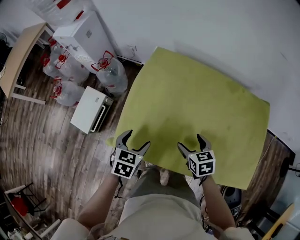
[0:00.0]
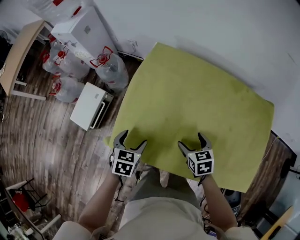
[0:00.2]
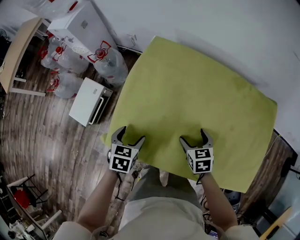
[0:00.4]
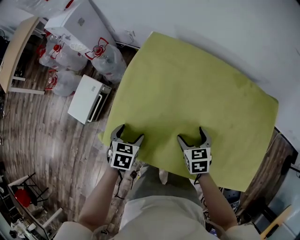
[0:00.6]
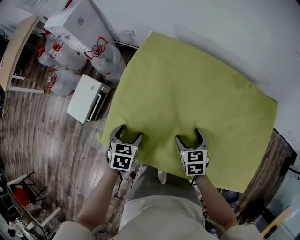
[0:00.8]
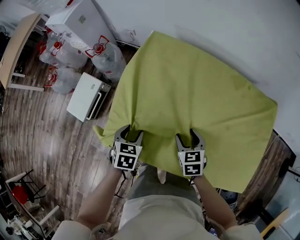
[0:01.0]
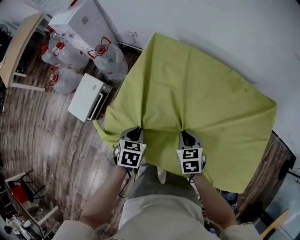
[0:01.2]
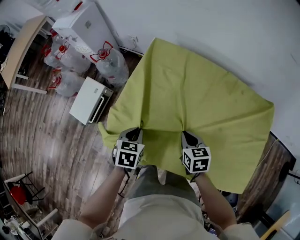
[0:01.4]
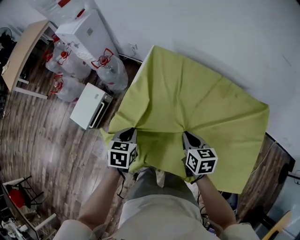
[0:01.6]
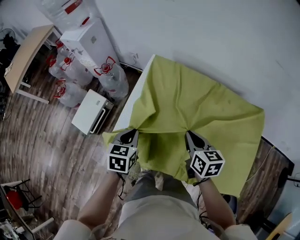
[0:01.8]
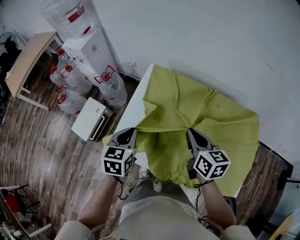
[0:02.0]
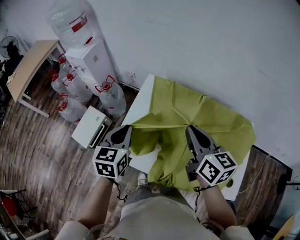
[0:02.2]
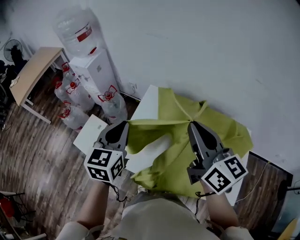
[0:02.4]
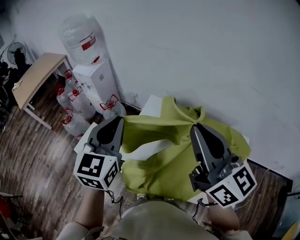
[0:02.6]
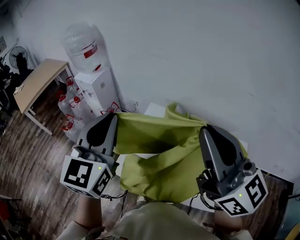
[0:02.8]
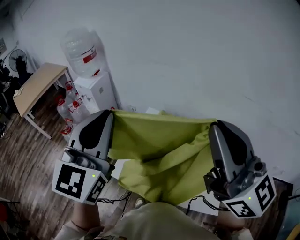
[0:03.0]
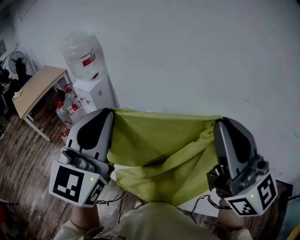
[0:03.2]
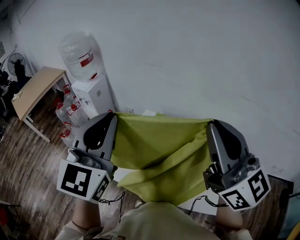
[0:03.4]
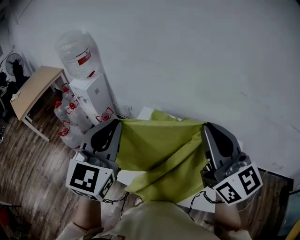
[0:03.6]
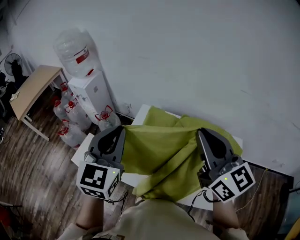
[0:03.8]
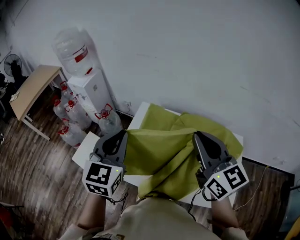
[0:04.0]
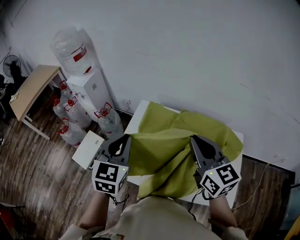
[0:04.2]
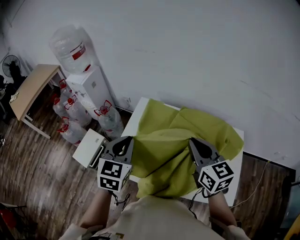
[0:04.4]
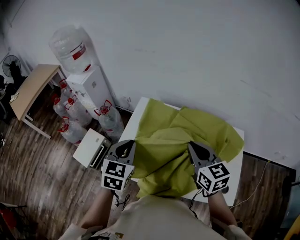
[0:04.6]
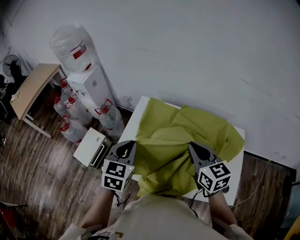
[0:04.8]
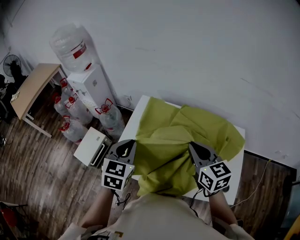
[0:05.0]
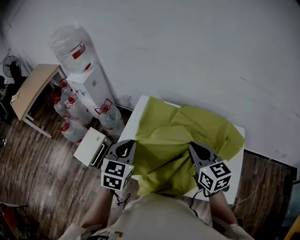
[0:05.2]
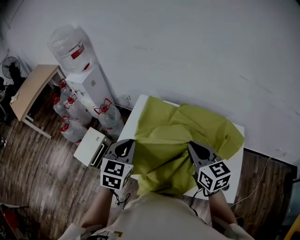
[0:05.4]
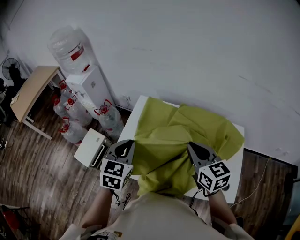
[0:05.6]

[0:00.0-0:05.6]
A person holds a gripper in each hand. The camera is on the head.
0:00.0 to 0:01.4: The left gripper closes its fingers, while the right gripper closes its fingers.
0:01.4 to 0:02.8: Both grippers travel together upward, some 60 cm. The left gripper tilts its fingers about 60 degrees upward. The right gripper angles its fingers upward, by roughly 60 degrees.
0:02.8 to 0:04.2: Both grippers move downward and to the right, about 15 cm. The right gripper swivels approximately 20 degrees.
0:04.2 to 0:05.6: Both grippers move downward, some 10 cm.

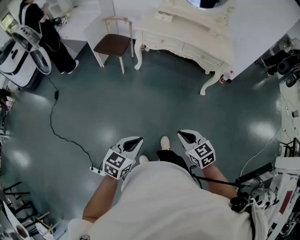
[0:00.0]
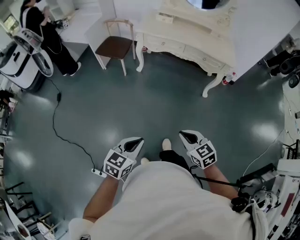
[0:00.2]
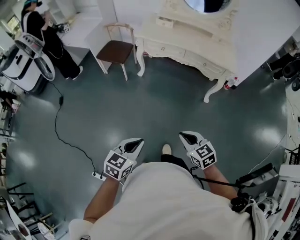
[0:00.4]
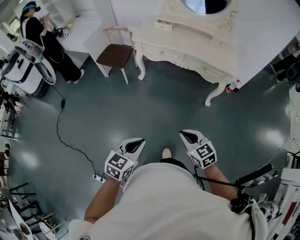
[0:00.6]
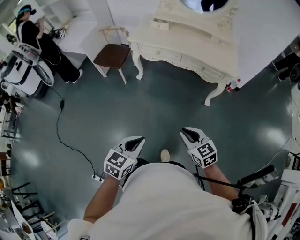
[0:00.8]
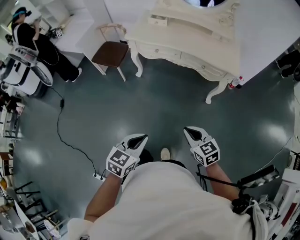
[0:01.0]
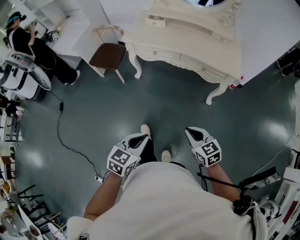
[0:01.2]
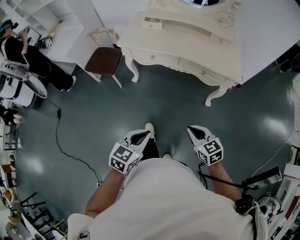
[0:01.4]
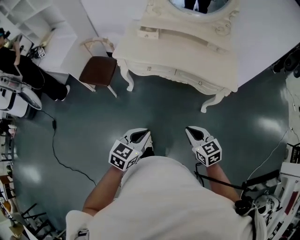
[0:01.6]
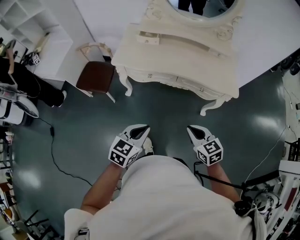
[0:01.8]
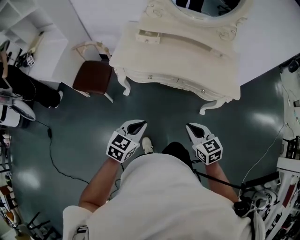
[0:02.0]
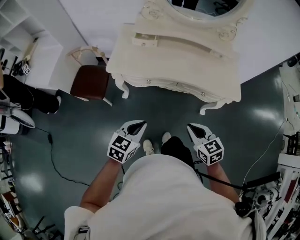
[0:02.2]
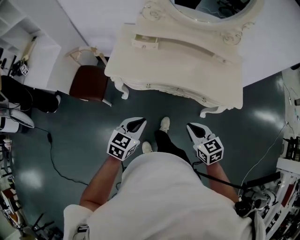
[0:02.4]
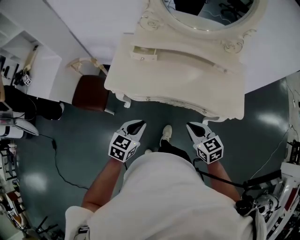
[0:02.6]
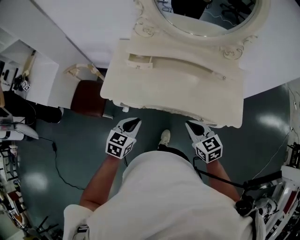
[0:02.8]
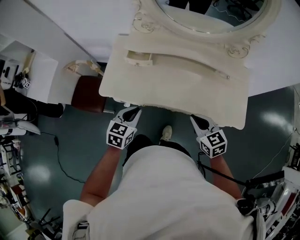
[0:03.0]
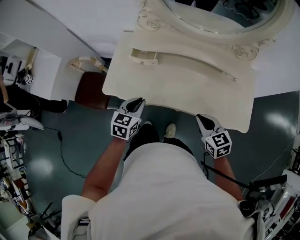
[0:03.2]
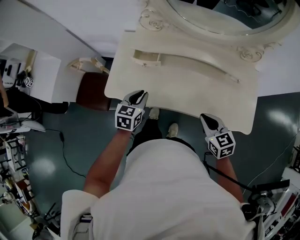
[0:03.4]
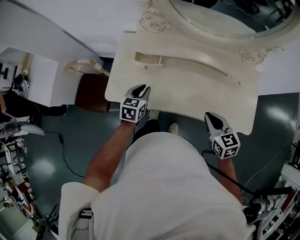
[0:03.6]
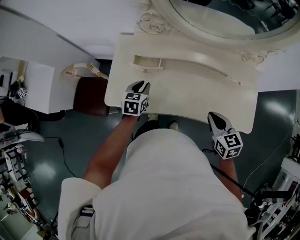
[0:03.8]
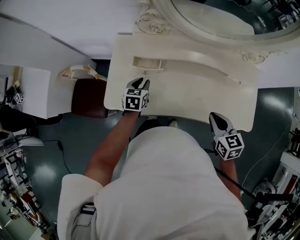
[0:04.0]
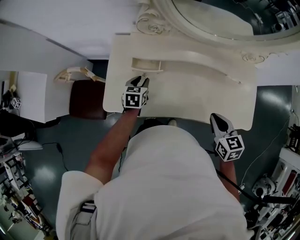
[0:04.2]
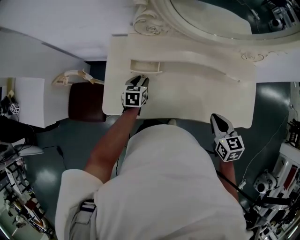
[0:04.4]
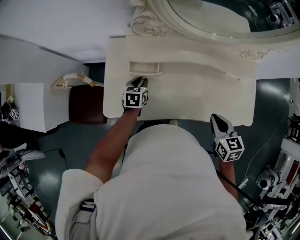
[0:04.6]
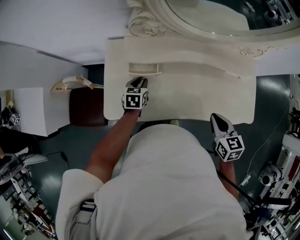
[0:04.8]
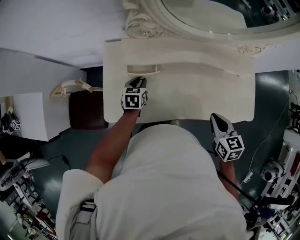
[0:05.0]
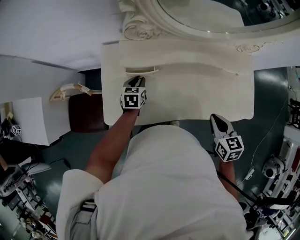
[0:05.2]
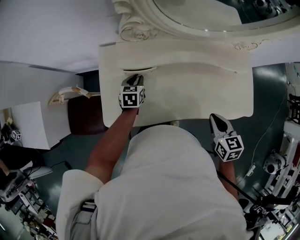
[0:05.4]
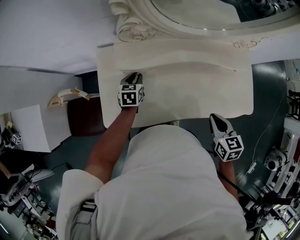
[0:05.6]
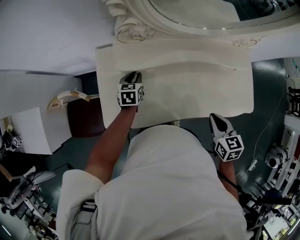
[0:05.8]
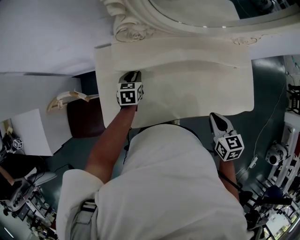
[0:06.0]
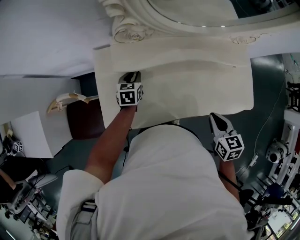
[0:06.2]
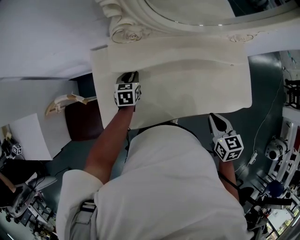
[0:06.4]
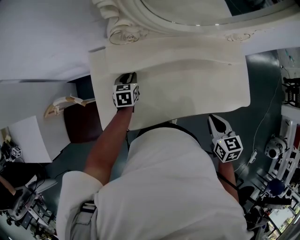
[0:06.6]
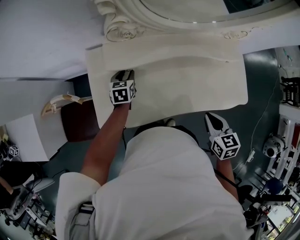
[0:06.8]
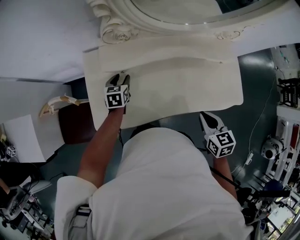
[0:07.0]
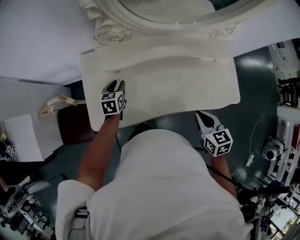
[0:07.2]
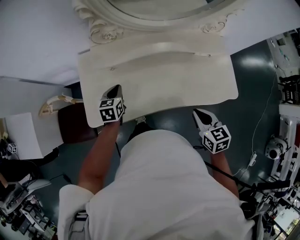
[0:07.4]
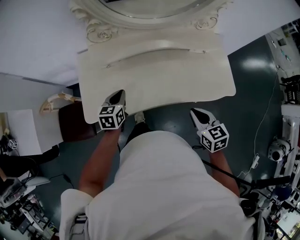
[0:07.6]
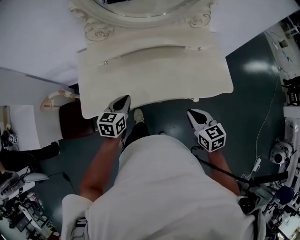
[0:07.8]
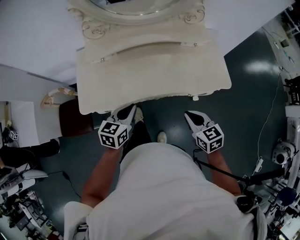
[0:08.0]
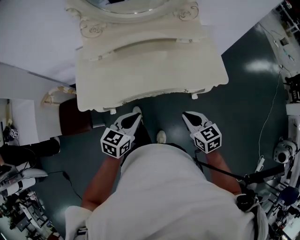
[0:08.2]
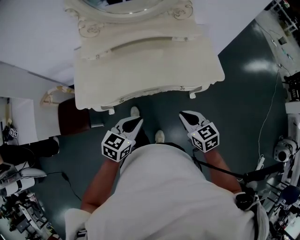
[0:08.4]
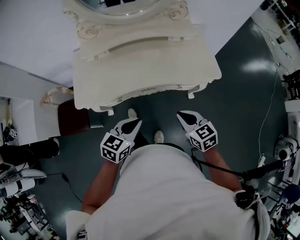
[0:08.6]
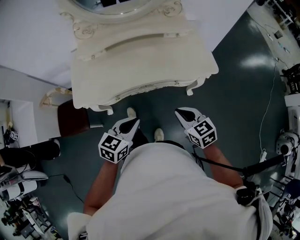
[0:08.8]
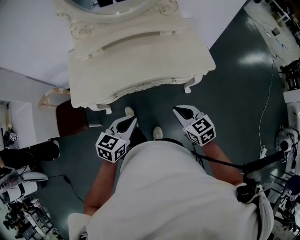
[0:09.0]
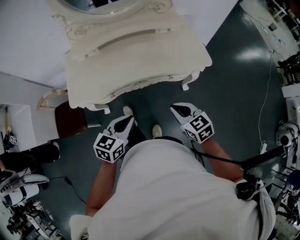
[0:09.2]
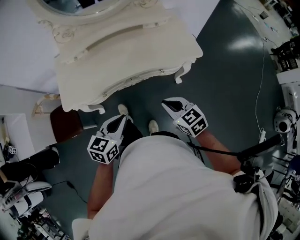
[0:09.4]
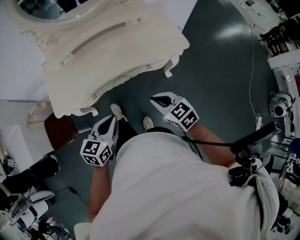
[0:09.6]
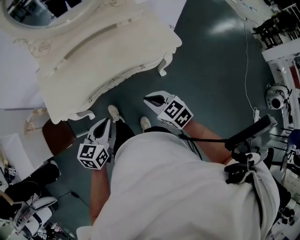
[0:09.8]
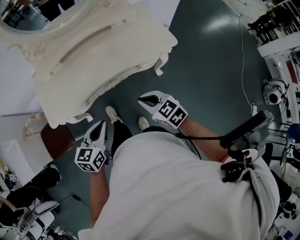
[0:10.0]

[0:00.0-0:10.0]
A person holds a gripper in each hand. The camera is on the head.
0:00.0 to 0:01.4: Both grippers travel together forward and to the right, some 35 cm.
0:01.4 to 0:02.8: The two grippers travel together, forward, some 50 cm.
0:02.8 to 0:04.2: The right gripper travels forward by about 15 cm, and changes its angle by roughly 20 degrees, while the left gripper shifts roughly 35 cm forward, and opens up.
0:04.2 to 0:05.8: The left gripper goes some 10 cm forward.
0:05.8 to 0:07.2: The left gripper travels backward by roughly 5 cm.
0:07.2 to 0:08.6: The left gripper moves backward and to the right, about 50 cm, swivels roughly 30 degrees, and closes; the right gripper is displaced backward and to the right by about 25 cm.
0:08.6 to 0:10.0: The grippers stay close to where they were, moving slightly.

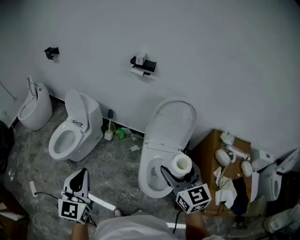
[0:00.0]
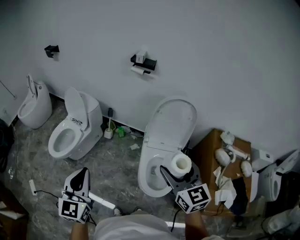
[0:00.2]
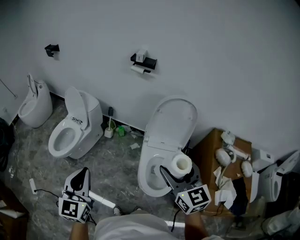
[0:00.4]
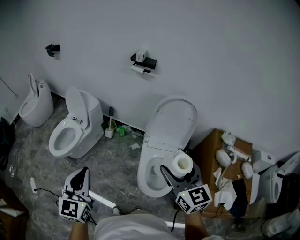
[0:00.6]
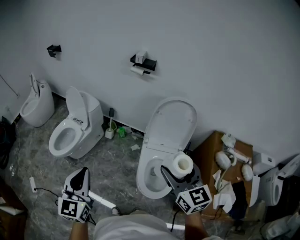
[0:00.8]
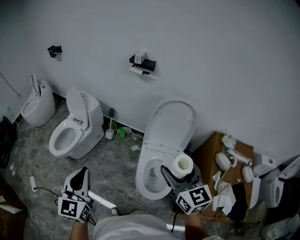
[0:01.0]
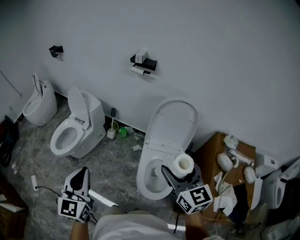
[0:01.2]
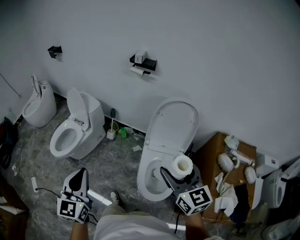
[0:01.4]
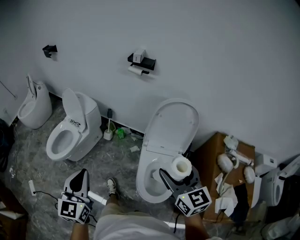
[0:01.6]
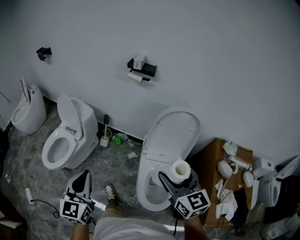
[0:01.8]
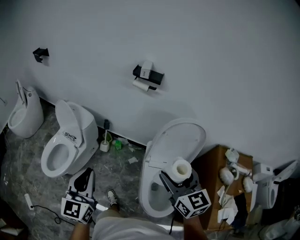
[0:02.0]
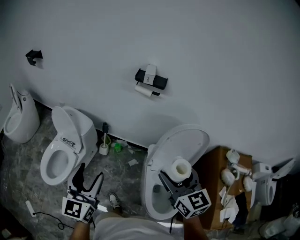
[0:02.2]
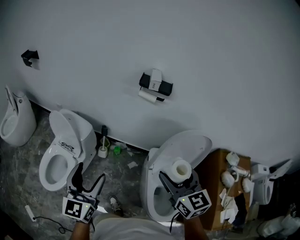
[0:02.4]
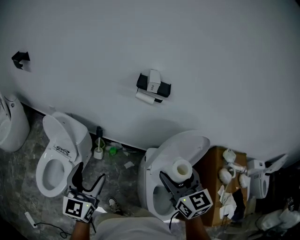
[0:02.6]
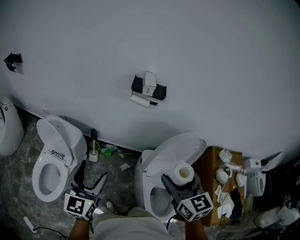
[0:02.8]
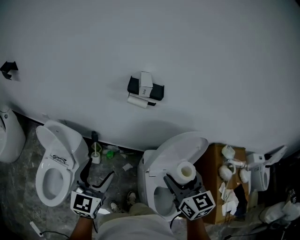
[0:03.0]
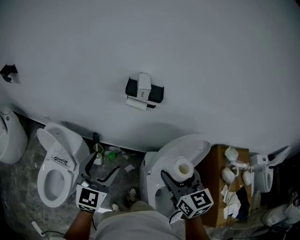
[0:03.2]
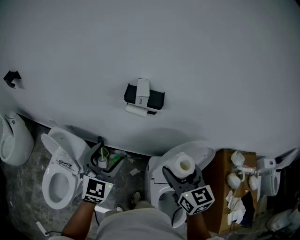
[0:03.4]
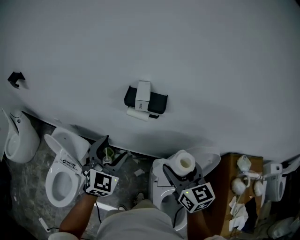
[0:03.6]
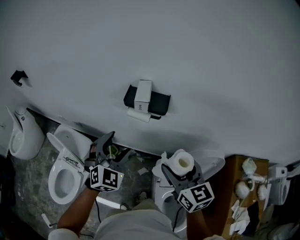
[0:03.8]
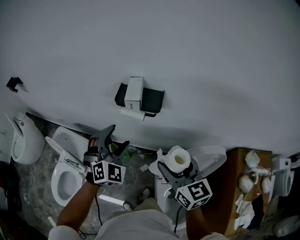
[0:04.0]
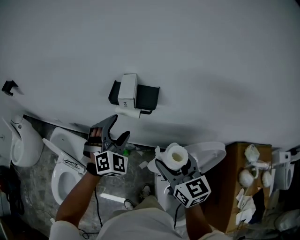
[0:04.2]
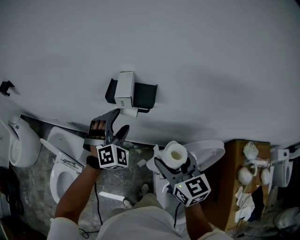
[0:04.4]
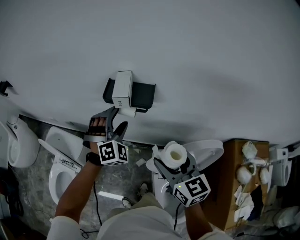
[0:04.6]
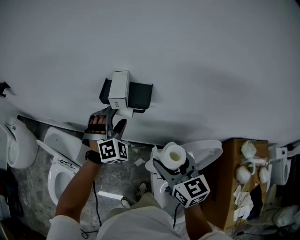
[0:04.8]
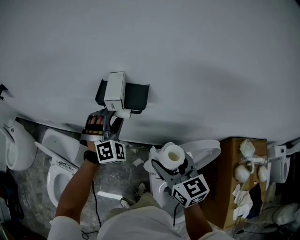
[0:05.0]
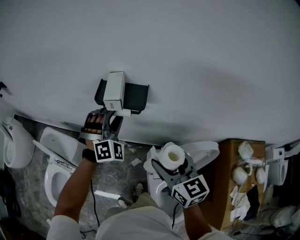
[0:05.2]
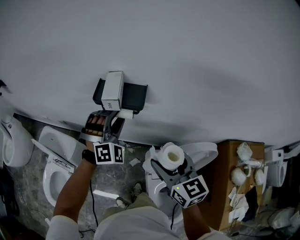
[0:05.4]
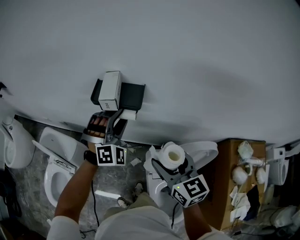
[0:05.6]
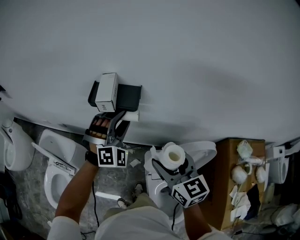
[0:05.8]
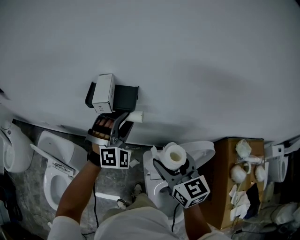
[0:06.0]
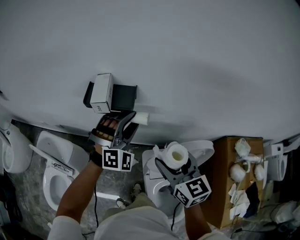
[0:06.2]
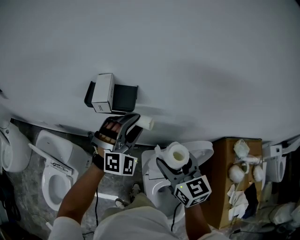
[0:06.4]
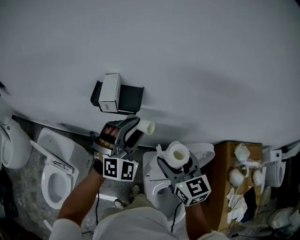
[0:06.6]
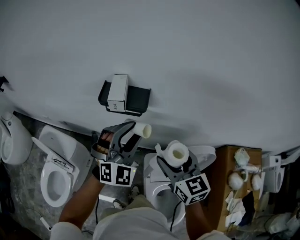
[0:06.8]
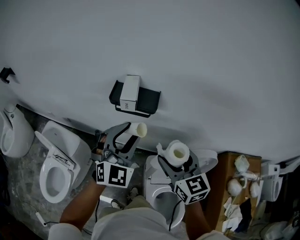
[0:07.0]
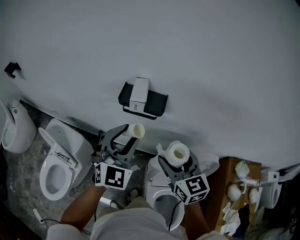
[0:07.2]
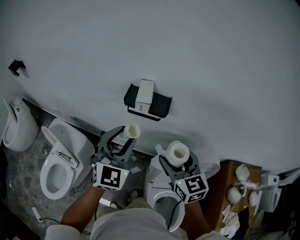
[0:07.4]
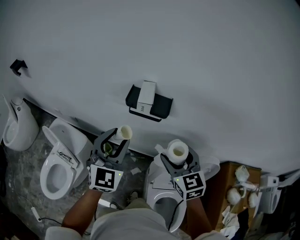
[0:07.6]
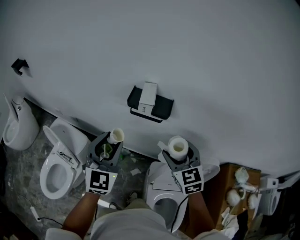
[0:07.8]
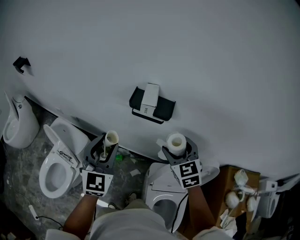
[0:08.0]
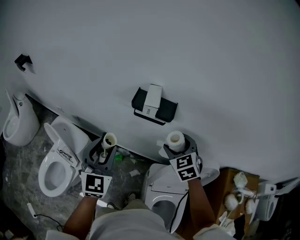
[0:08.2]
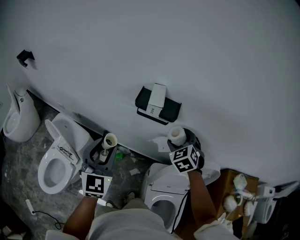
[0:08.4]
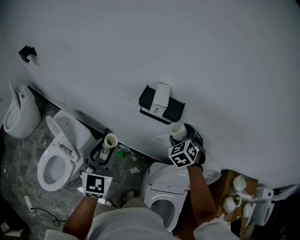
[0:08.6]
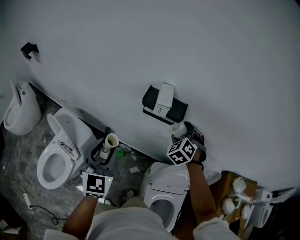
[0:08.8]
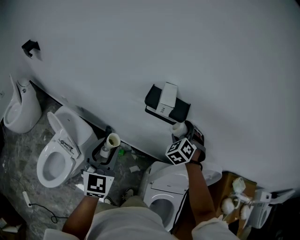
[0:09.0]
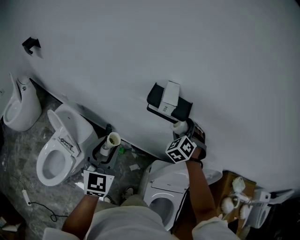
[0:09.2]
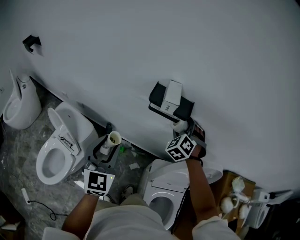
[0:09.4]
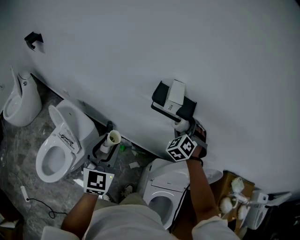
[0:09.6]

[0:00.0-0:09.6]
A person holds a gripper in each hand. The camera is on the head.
0:00.0 to 0:01.6: Both grippers move forward, about 5 cm.
0:01.6 to 0:03.2: Both grippers travel together forward, roughly 35 cm. The left gripper rotates some 30 degrees, and opens up.
0:03.2 to 0:04.8: The left gripper travels forward and to the right by approximately 30 cm, and twists about 60 degrees clockwise, seen from behind; the right gripper moves forward, downward and to the right, some 15 cm.
0:04.8 to 0:06.4: The left gripper moves to the right and backward, about 15 cm, swivels roughly 20 degrees, and closes its fingers. Meanwhile the right gripper is displaced to the right by about 5 cm.
0:06.4 to 0:08.0: The right gripper travels to the left and forward by some 10 cm, and changes its angle by roughly 30 degrees; the left gripper is displaced to the left by approximately 25 cm, and twists roughly 50 degrees counterclockwise, seen from behind.
0:08.0 to 0:09.6: The left gripper moves to the left, approximately 5 cm. The right gripper shifts some 10 cm forward and downward, and turns by some 40 degrees.
